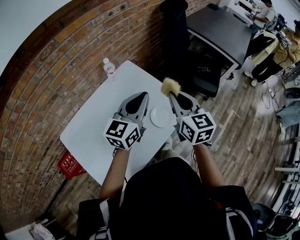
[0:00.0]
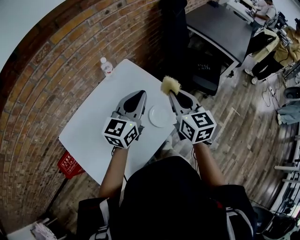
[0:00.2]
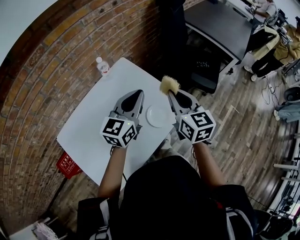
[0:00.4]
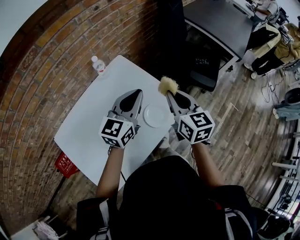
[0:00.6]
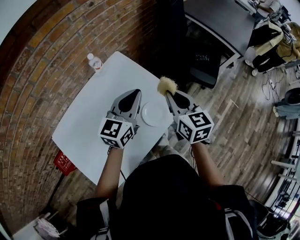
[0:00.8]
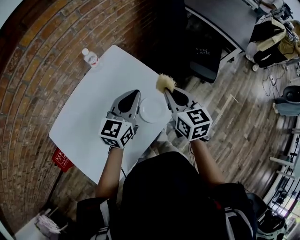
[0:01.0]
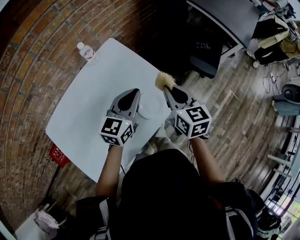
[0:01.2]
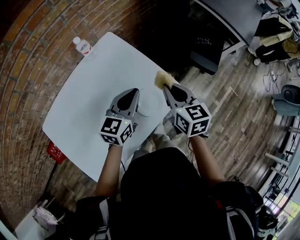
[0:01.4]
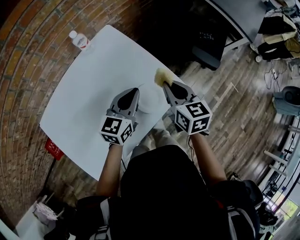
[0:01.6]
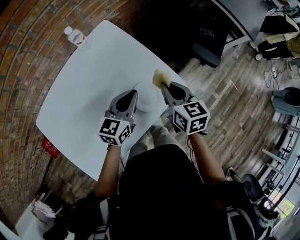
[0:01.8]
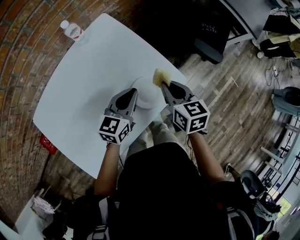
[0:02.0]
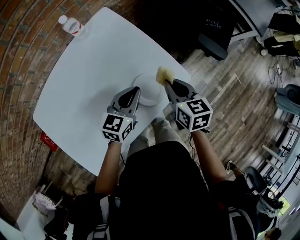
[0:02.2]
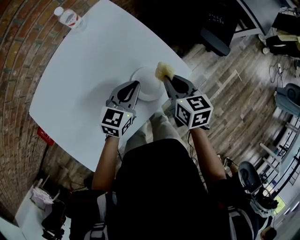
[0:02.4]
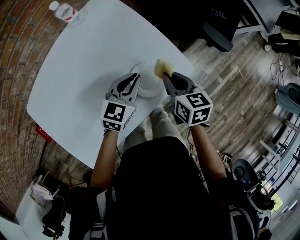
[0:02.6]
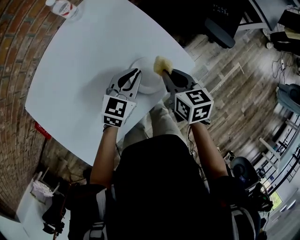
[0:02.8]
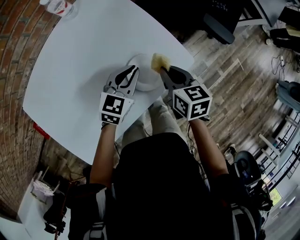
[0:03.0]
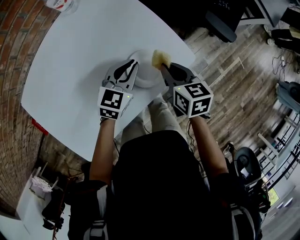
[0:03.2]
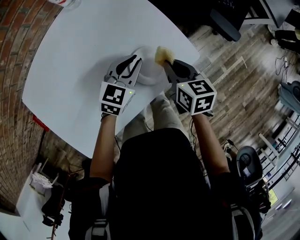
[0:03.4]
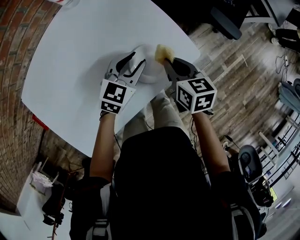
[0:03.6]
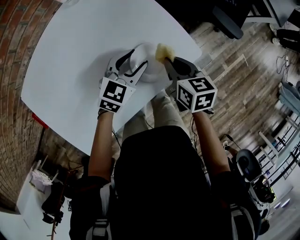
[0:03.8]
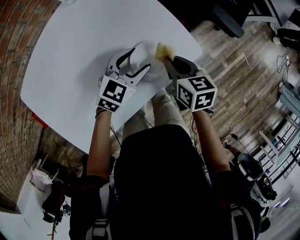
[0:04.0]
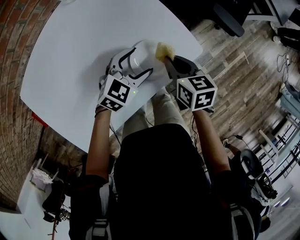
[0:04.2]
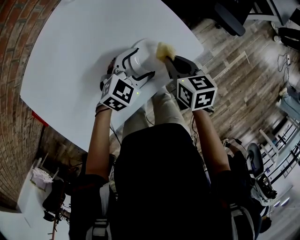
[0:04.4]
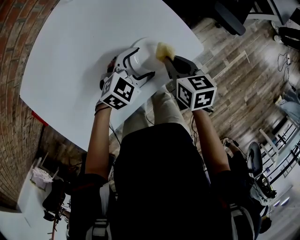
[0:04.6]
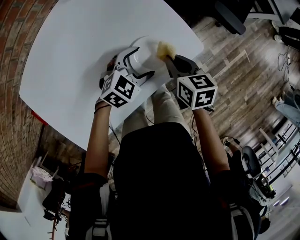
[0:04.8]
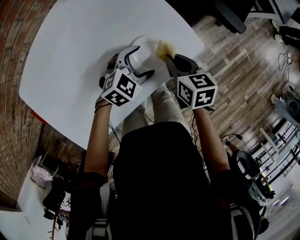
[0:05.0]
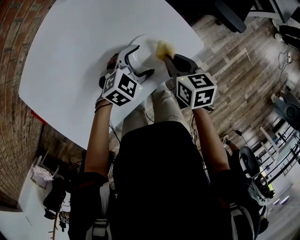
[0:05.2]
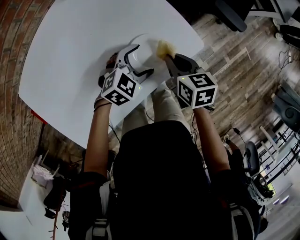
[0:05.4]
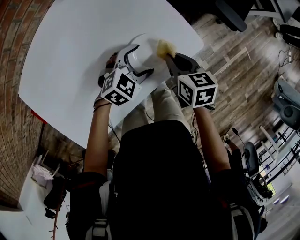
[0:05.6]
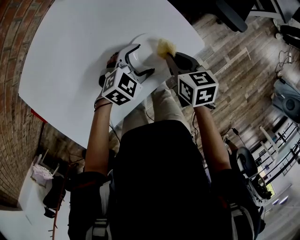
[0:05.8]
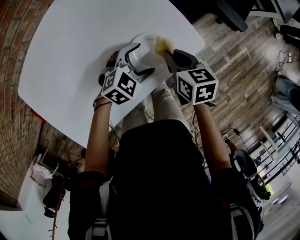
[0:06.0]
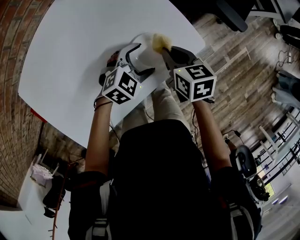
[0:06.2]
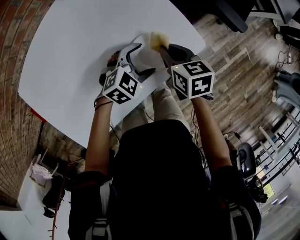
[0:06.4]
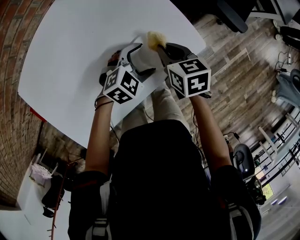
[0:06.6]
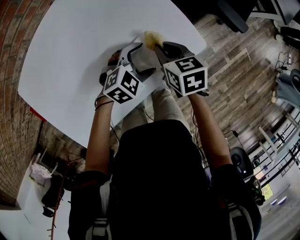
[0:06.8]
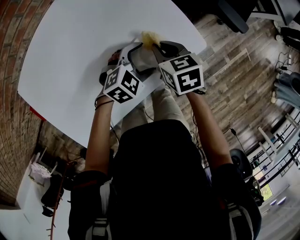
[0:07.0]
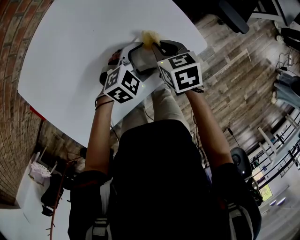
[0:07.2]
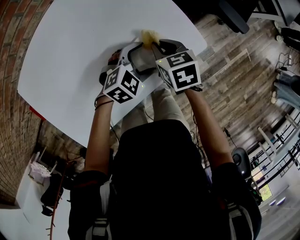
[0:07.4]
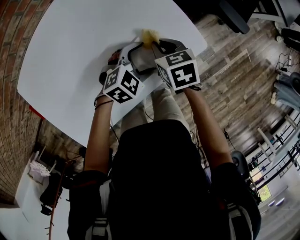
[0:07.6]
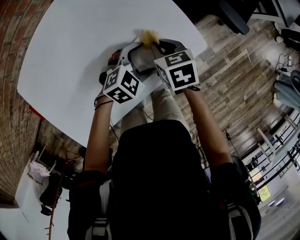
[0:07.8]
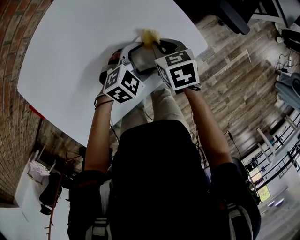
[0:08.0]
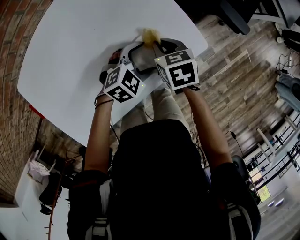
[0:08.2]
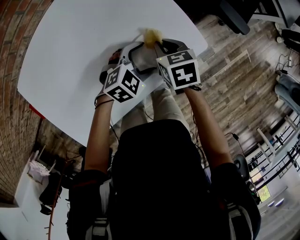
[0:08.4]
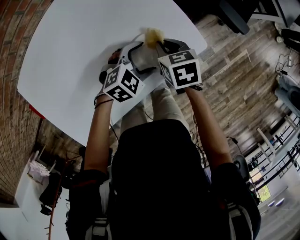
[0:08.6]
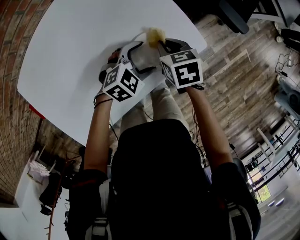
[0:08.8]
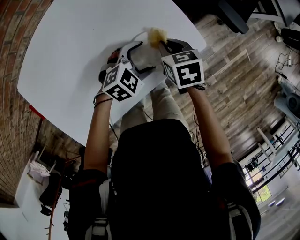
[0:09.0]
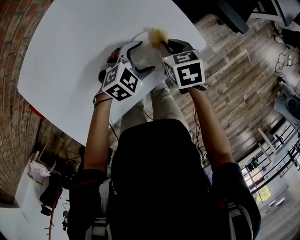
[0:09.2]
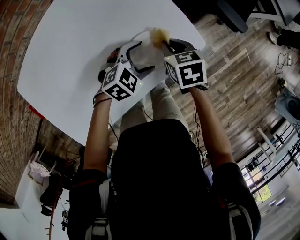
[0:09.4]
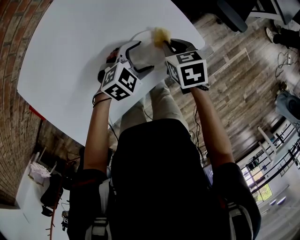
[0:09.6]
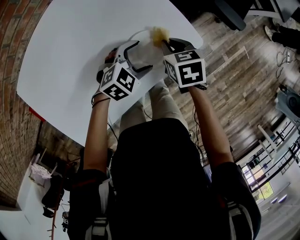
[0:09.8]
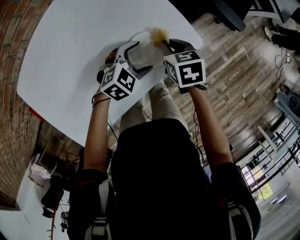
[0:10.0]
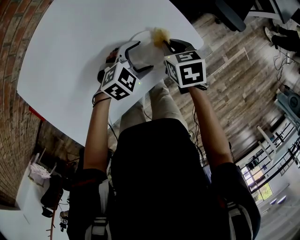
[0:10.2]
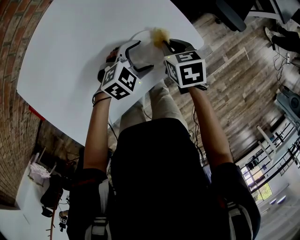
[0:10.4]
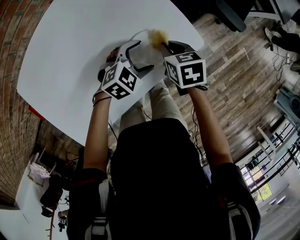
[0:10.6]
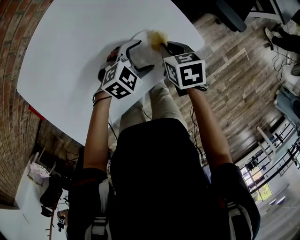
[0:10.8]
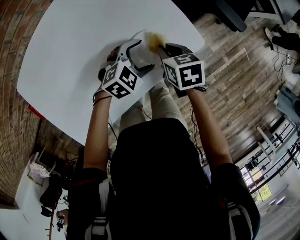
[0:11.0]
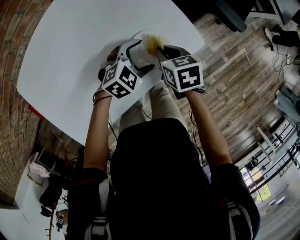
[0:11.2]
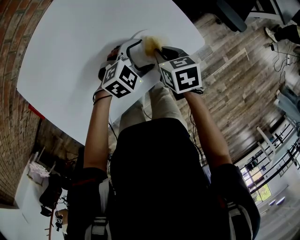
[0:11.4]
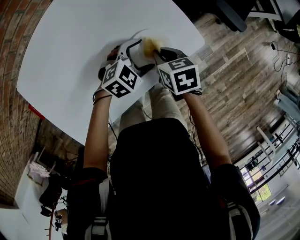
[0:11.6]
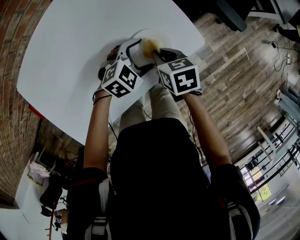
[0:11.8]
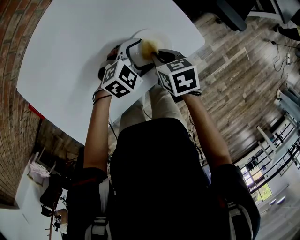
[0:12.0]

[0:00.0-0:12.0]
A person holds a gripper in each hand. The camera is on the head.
0:00.0 to 0:01.6: Both grippers move downward, about 15 cm.
0:01.6 to 0:03.0: Both grippers move downward, some 15 cm.
0:03.0 to 0:04.4: The left gripper moves about 5 cm, changes its angle by about 20 degrees, and opens.
0:04.4 to 0:06.0: The grippers move only a little.
0:06.0 to 0:07.6: The right gripper moves to the left, some 5 cm.
0:07.6 to 0:10.4: There are only small adjustments of the grippers.
0:10.4 to 0:12.0: The right gripper heads backward, covering about 5 cm.

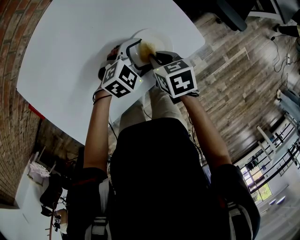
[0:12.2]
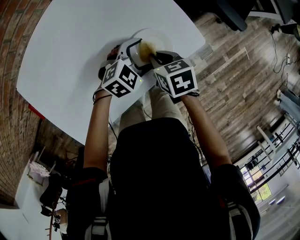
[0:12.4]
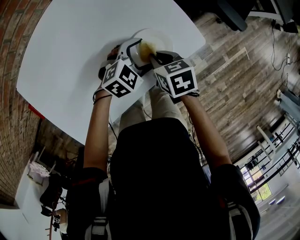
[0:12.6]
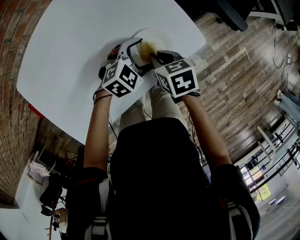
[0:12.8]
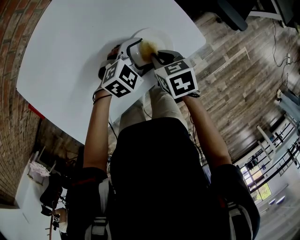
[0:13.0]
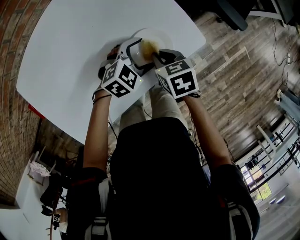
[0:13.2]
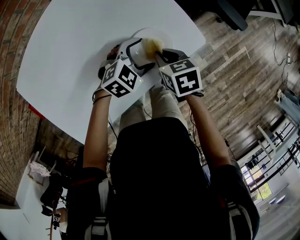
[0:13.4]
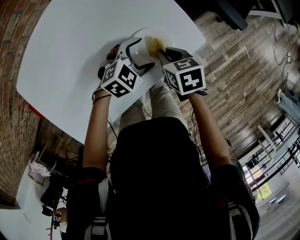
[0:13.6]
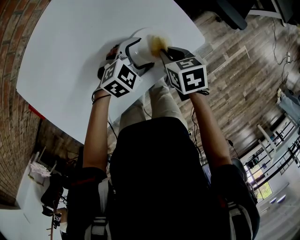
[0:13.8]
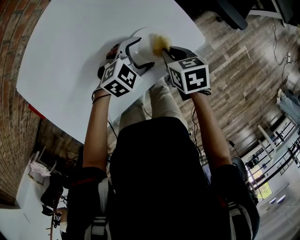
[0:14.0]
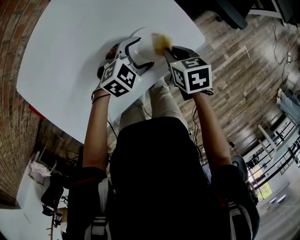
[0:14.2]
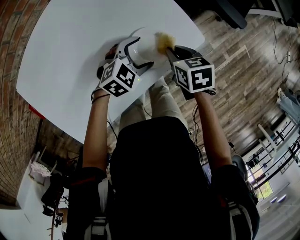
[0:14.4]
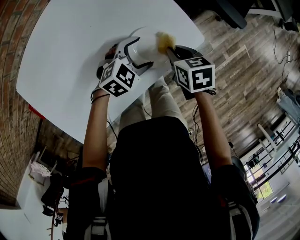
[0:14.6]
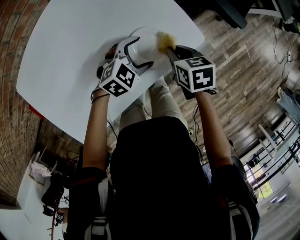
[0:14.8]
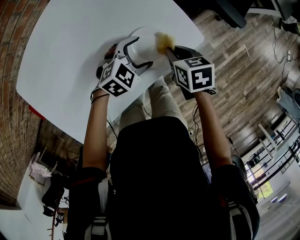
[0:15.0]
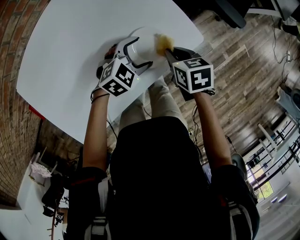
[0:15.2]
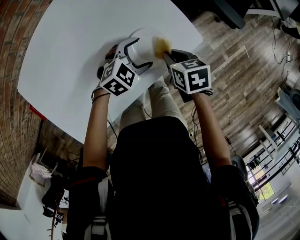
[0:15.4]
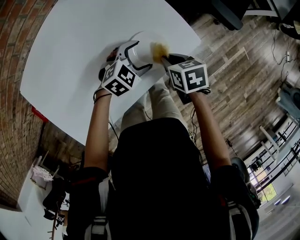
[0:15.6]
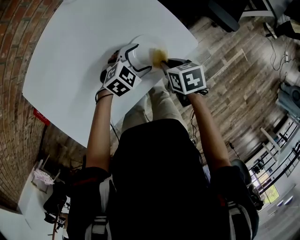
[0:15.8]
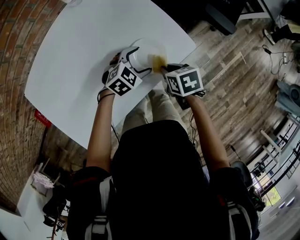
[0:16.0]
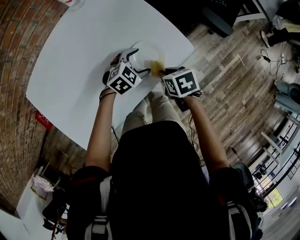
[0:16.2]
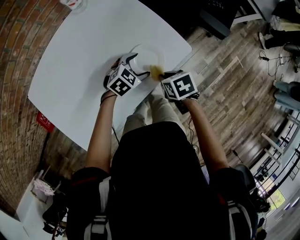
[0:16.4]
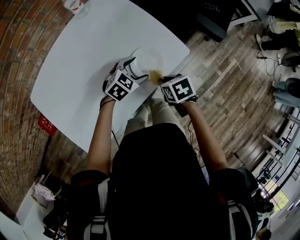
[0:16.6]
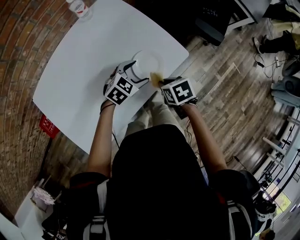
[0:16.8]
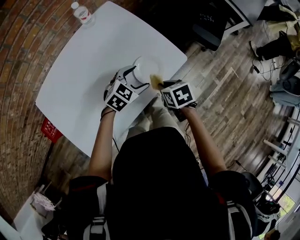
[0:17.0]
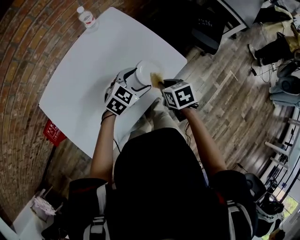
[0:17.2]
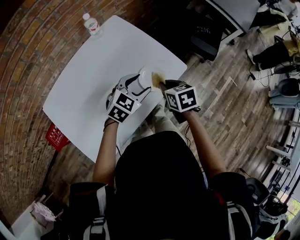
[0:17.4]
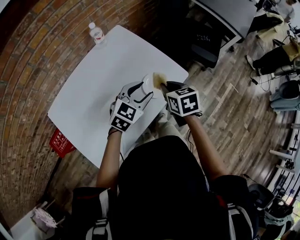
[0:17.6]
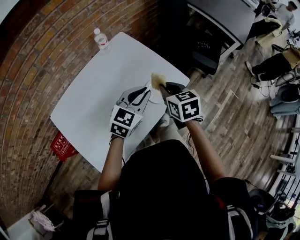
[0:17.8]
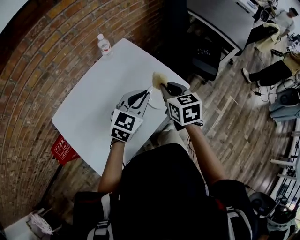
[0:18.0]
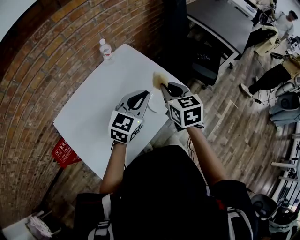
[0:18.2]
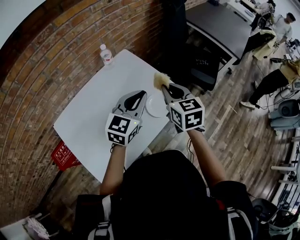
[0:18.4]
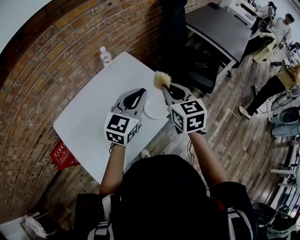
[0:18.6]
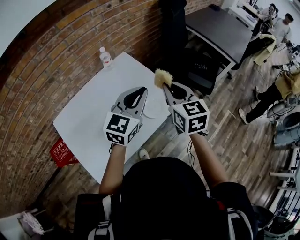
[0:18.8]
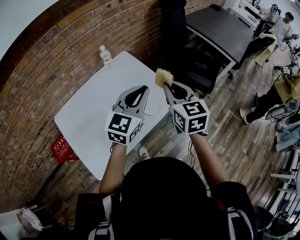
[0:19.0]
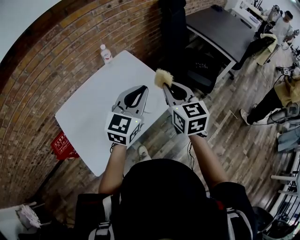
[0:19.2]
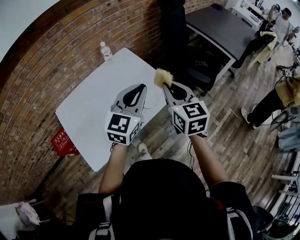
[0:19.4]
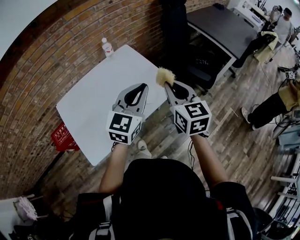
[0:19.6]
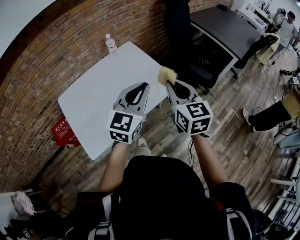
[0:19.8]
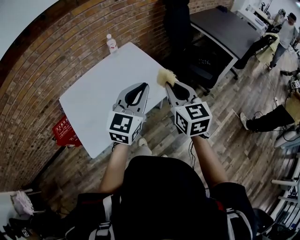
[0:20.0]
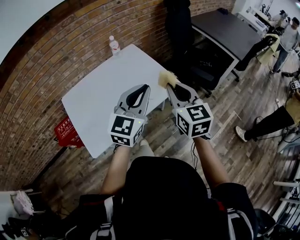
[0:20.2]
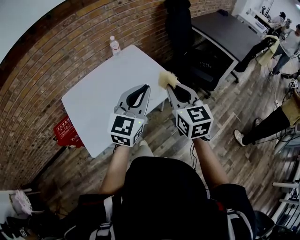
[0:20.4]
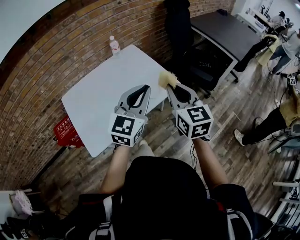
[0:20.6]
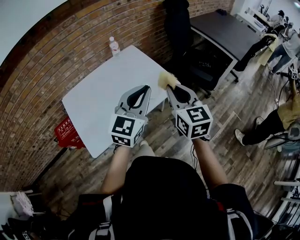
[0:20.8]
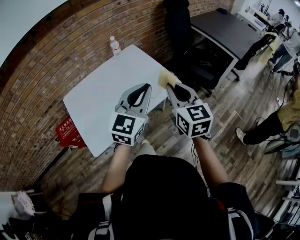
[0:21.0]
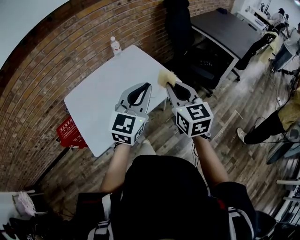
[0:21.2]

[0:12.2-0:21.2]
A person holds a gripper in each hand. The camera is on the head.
0:12.2 to 0:13.8: There are only small adjustments of the grippers.
0:13.8 to 0:15.2: The grippers stay close to where they were, moving slightly.
0:15.2 to 0:16.6: The right gripper shifts by approximately 10 cm.
0:16.6 to 0:18.2: Both grippers travel together upward, roughly 25 cm. The left gripper points its fingers about 30 degrees further upward, and closes up. Meanwhile the right gripper tips its fingers upward by some 40 degrees.
0:18.2 to 0:19.8: The left gripper shifts approximately 15 cm backward, upward and to the right; the right gripper moves backward, to the right and upward, about 20 cm.
0:19.8 to 0:21.2: Both grippers move backward, some 5 cm.

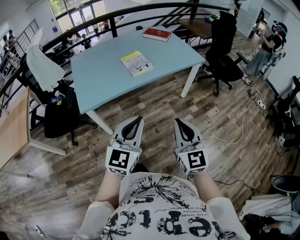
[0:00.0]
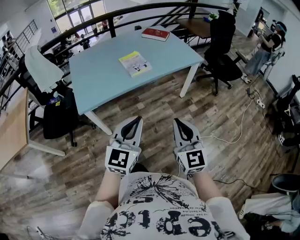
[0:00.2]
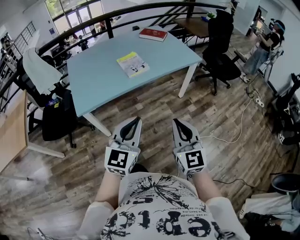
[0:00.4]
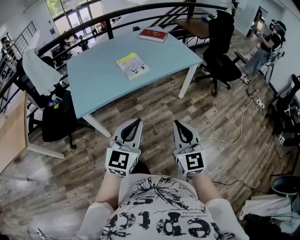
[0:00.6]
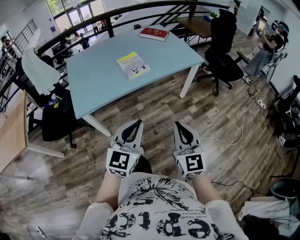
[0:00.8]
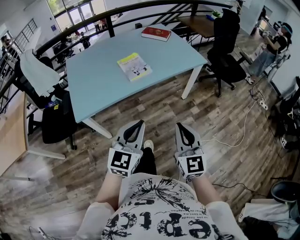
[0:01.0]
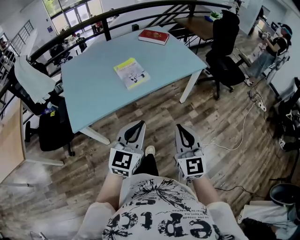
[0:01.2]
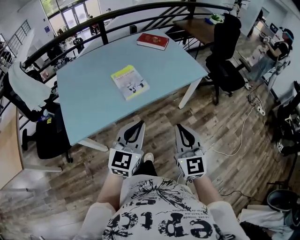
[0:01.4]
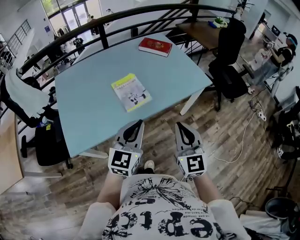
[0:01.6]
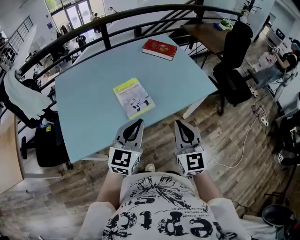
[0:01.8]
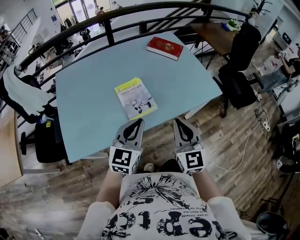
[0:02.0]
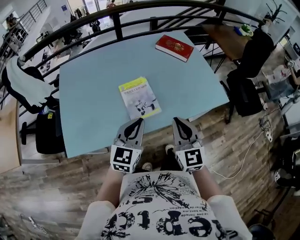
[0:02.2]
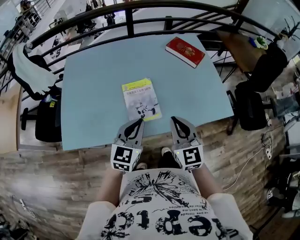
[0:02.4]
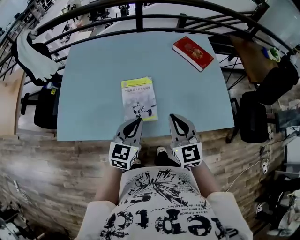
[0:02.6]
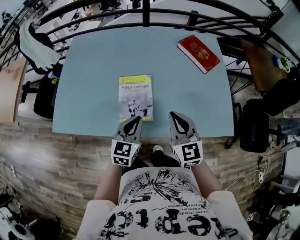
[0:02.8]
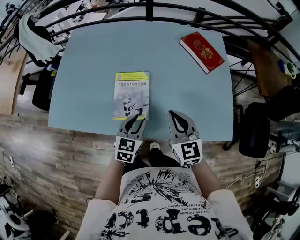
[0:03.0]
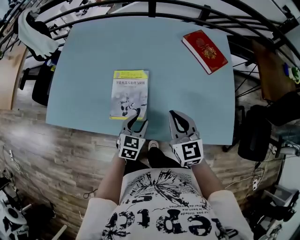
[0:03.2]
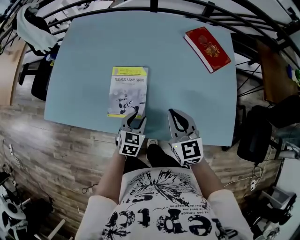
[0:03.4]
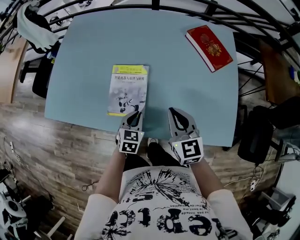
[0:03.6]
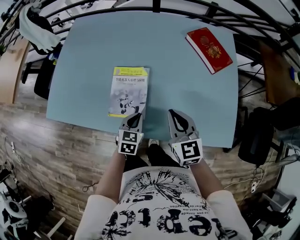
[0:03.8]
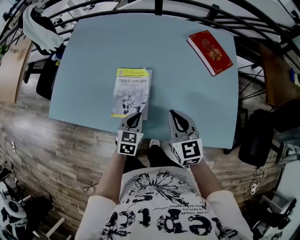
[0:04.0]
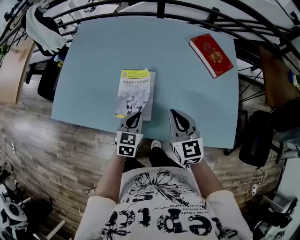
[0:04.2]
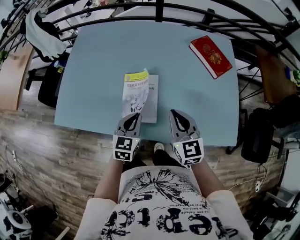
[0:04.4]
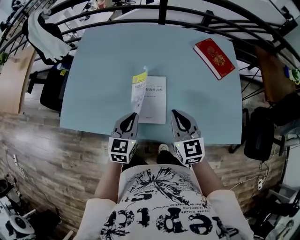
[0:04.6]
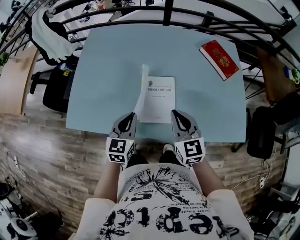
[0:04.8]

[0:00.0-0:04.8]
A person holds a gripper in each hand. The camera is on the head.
0:00.0 to 0:01.6: The two grippers go some 35 cm forward.
0:01.6 to 0:03.2: The right gripper ends up about 40 cm from where it was, and turns by some 40 degrees. The left gripper ends up about 40 cm from where it was, points its fingers approximately 30 degrees further downward, and opens up.
0:03.2 to 0:04.8: The left gripper heads to the left and upward, covering about 25 cm, and closes its fingers. The right gripper moves to the left, some 15 cm.
